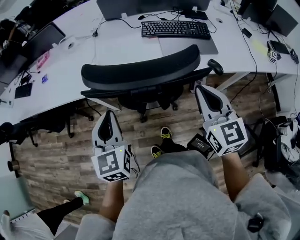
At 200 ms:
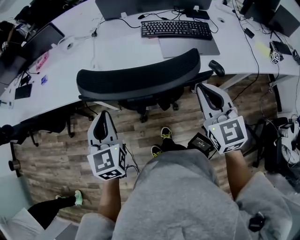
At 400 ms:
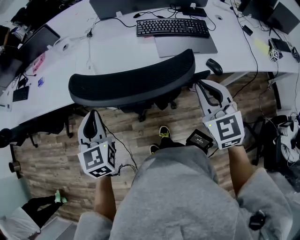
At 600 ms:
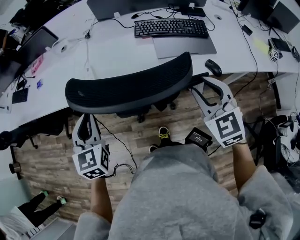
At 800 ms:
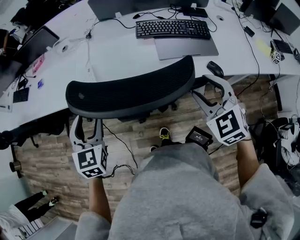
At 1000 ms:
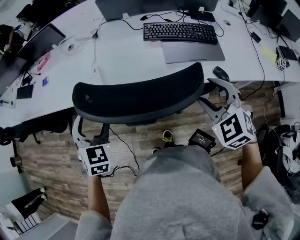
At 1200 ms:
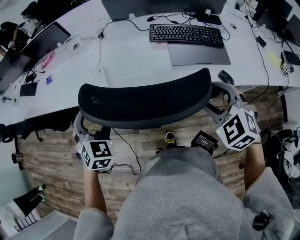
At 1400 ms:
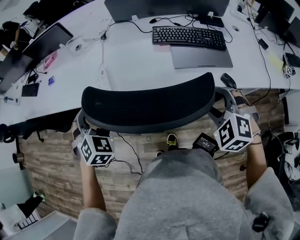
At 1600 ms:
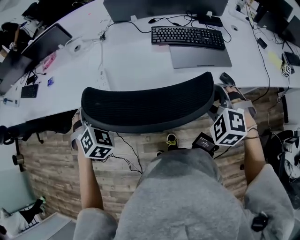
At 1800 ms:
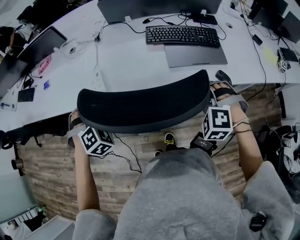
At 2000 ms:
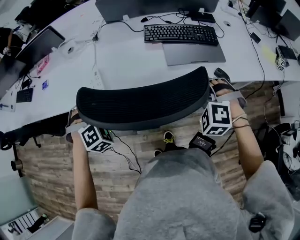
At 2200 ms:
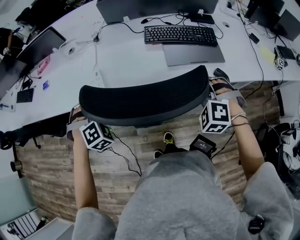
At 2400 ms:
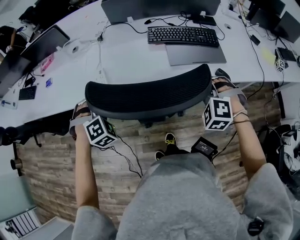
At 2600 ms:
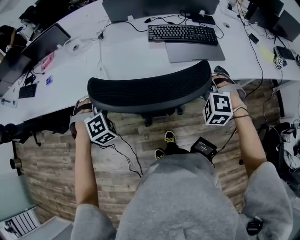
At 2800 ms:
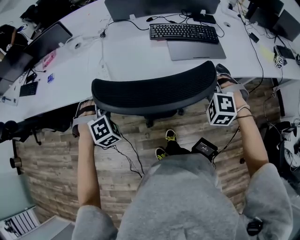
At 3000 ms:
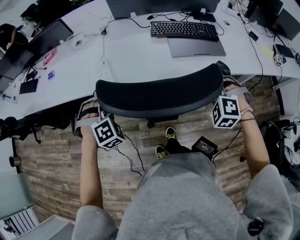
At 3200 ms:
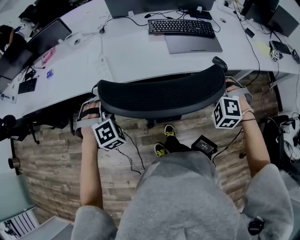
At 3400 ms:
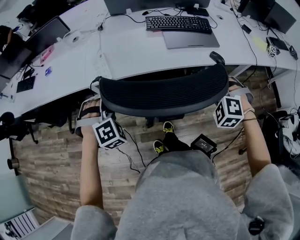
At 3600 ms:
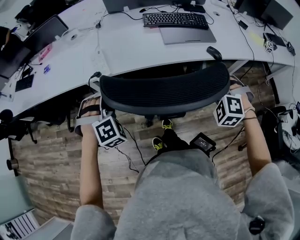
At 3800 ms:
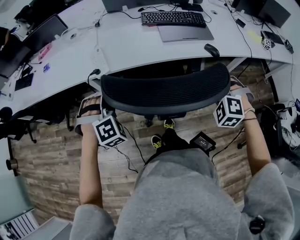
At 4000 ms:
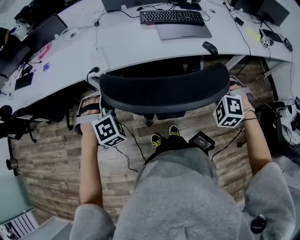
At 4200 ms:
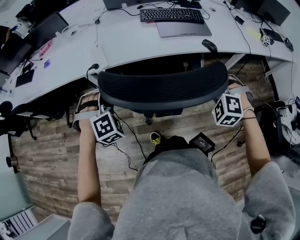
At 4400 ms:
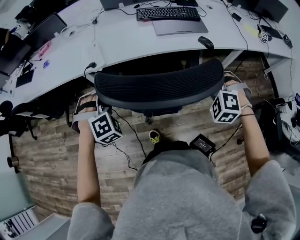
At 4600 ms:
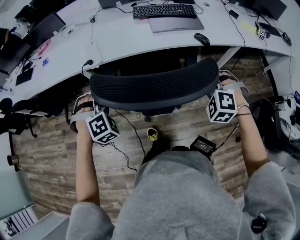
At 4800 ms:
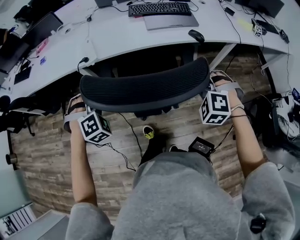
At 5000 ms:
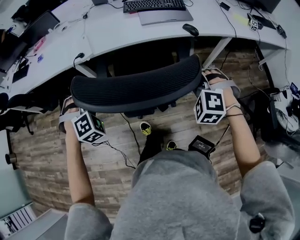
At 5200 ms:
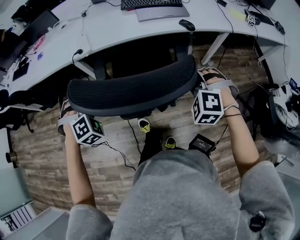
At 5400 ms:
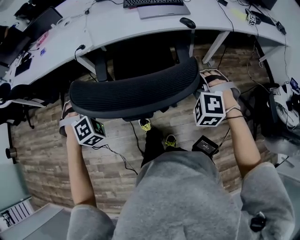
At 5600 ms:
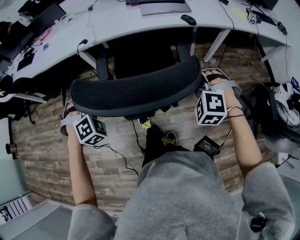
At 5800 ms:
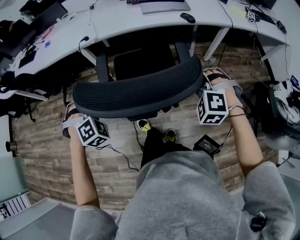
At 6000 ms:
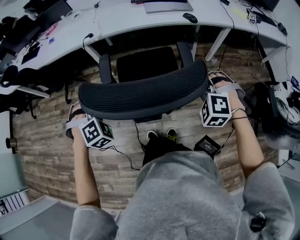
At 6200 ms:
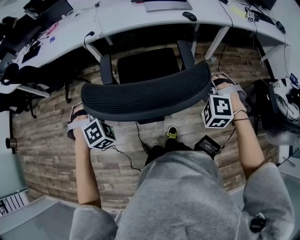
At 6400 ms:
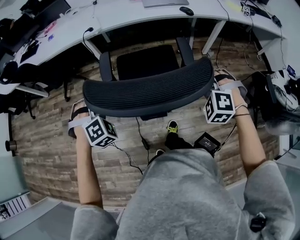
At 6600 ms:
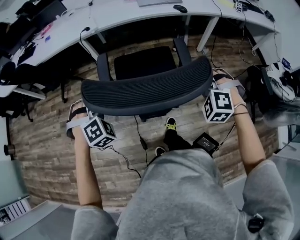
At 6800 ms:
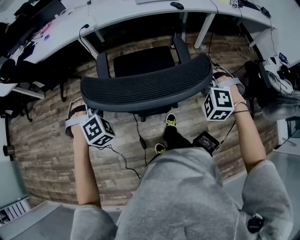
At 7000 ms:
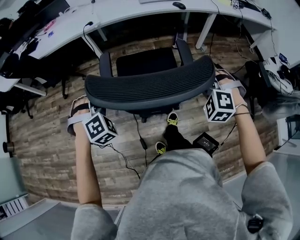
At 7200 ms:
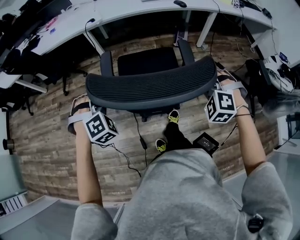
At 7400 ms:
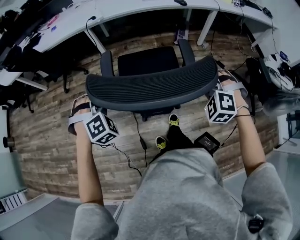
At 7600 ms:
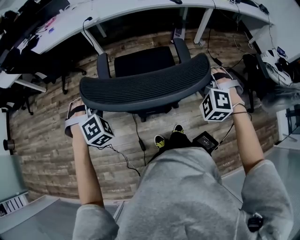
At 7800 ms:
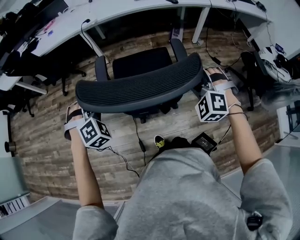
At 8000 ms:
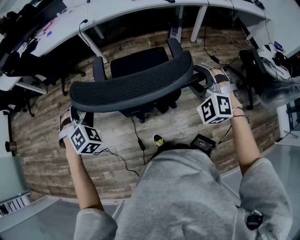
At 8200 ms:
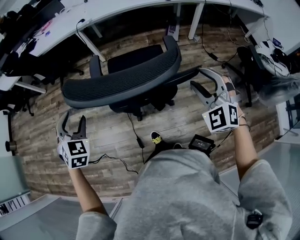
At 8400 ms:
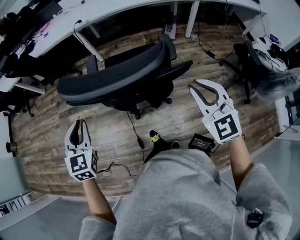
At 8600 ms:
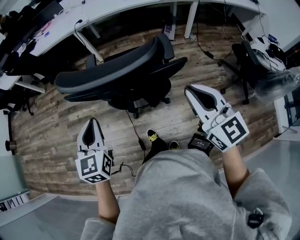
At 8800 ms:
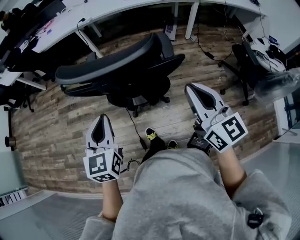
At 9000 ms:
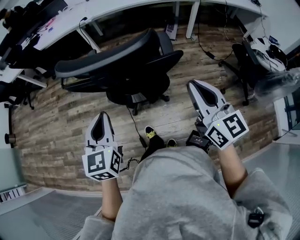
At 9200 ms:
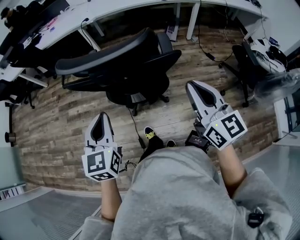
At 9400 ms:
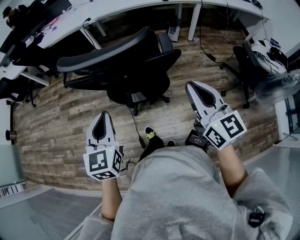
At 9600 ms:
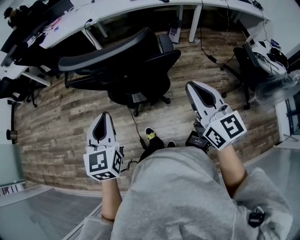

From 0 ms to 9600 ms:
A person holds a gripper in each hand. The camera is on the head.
From 0 ms to 1600 ms: The right gripper travels downward and forward by roughly 15 cm, rotates around the line of its fingers by roughly 60 degrees, counterclockwise from behind, and opens its fingers. The left gripper shifts about 15 cm forward and downward, rotates around the line of its fingers by roughly 50 degrees, clockwise from behind, and opens its fingers.
From 1600 ms to 3200 ms: The two grippers go roughly 10 cm backward. The right gripper closes up. The left gripper rotates approximately 30 degrees, and closes its fingers.
From 3200 ms to 4800 ms: The two grippers go roughly 15 cm backward.
From 4800 ms to 6400 ms: The grippers both shift backward by approximately 25 cm.
From 6400 ms to 8000 ms: Both grippers travel together backward, approximately 20 cm. The right gripper changes its angle by about 20 degrees, and opens up.
From 8000 ms to 9600 ms: The right gripper travels backward and upward by about 20 cm, rolls clockwise, seen from behind, by some 70 degrees, and closes up, while the left gripper goes some 25 cm backward and to the right, rotates around the line of its fingers by about 60 degrees, counterclockwise from behind, and closes its fingers.

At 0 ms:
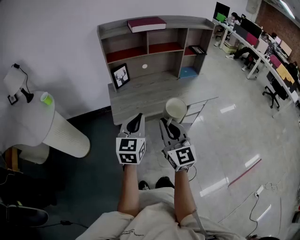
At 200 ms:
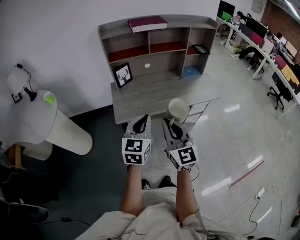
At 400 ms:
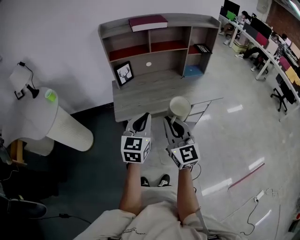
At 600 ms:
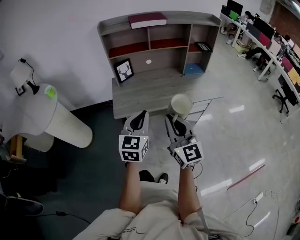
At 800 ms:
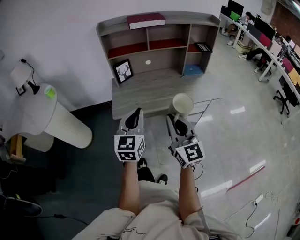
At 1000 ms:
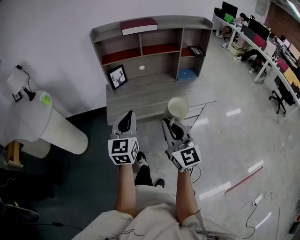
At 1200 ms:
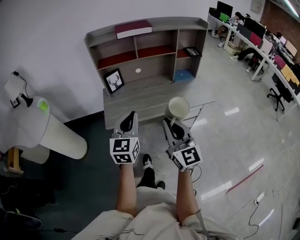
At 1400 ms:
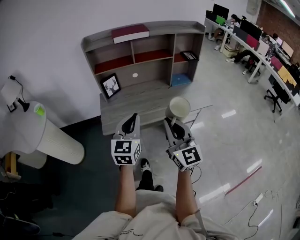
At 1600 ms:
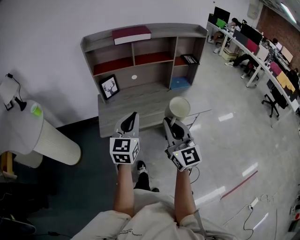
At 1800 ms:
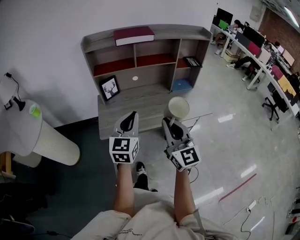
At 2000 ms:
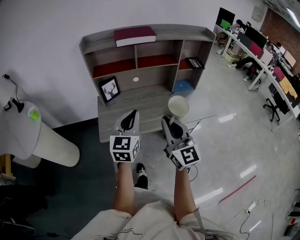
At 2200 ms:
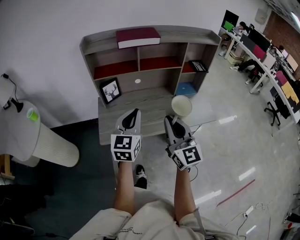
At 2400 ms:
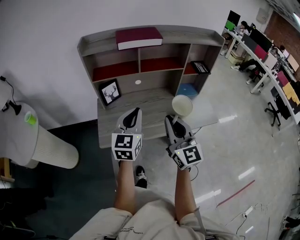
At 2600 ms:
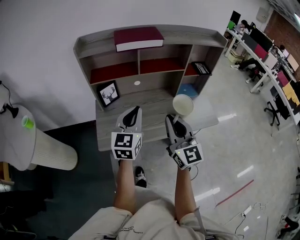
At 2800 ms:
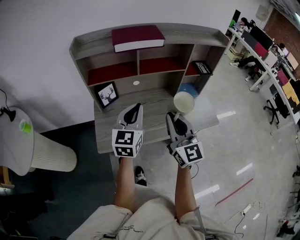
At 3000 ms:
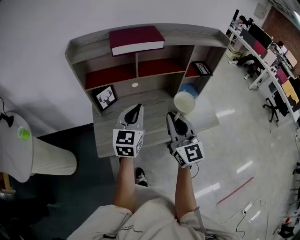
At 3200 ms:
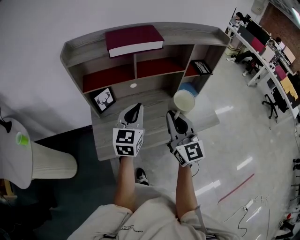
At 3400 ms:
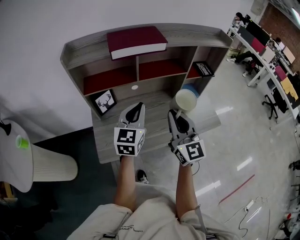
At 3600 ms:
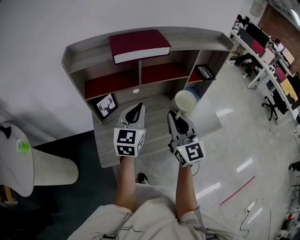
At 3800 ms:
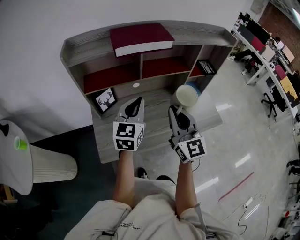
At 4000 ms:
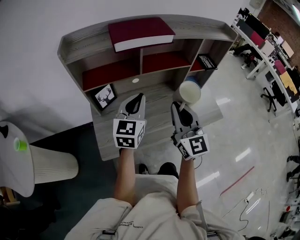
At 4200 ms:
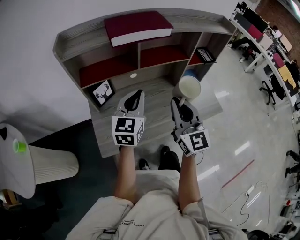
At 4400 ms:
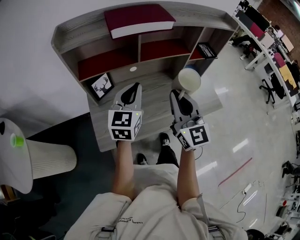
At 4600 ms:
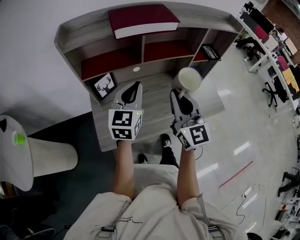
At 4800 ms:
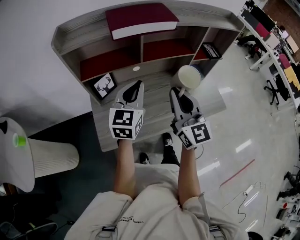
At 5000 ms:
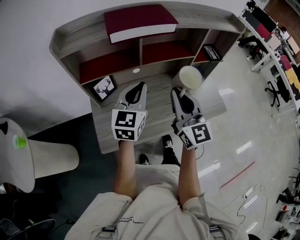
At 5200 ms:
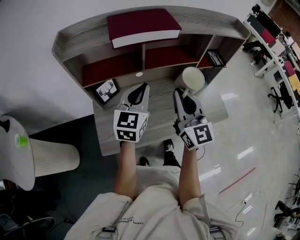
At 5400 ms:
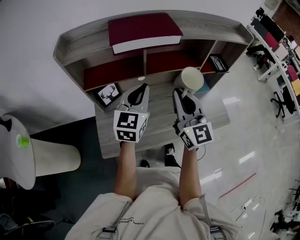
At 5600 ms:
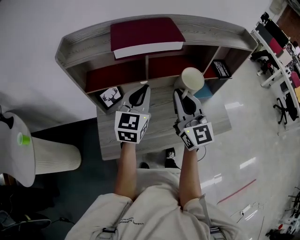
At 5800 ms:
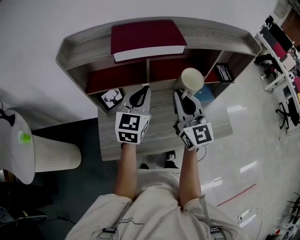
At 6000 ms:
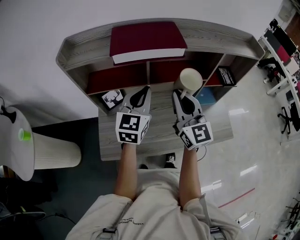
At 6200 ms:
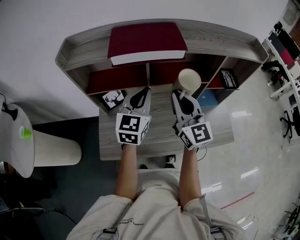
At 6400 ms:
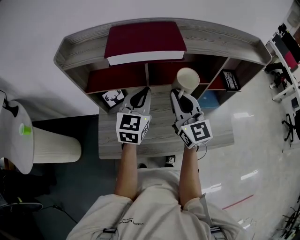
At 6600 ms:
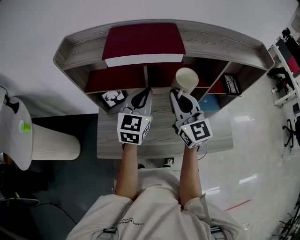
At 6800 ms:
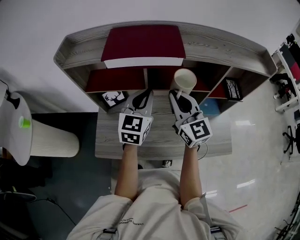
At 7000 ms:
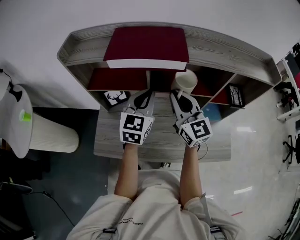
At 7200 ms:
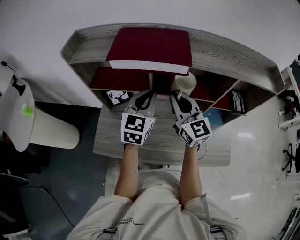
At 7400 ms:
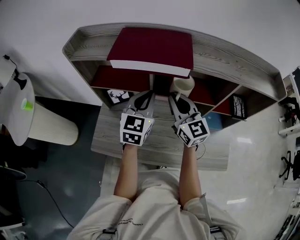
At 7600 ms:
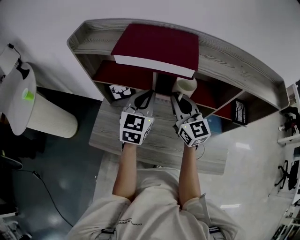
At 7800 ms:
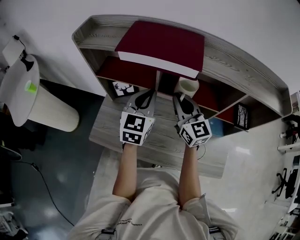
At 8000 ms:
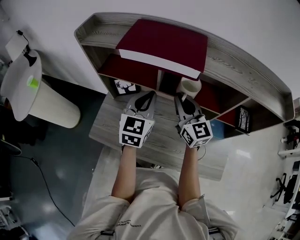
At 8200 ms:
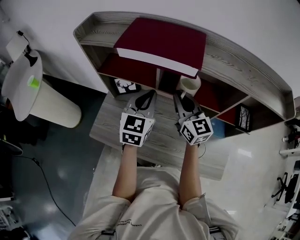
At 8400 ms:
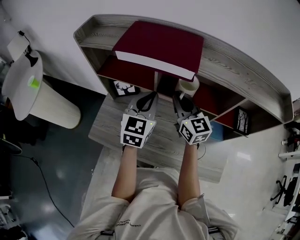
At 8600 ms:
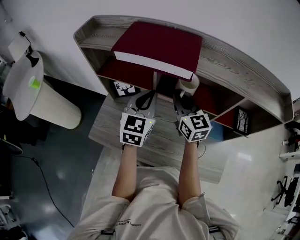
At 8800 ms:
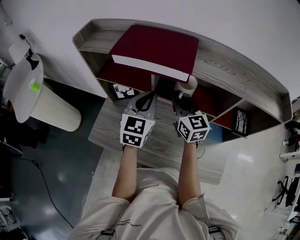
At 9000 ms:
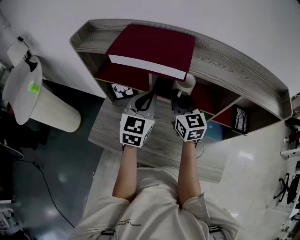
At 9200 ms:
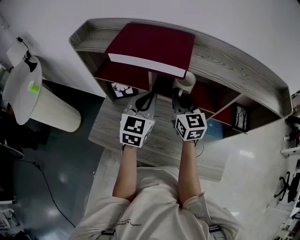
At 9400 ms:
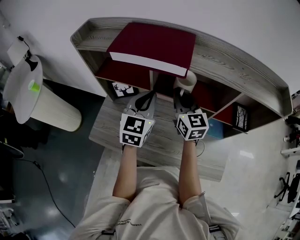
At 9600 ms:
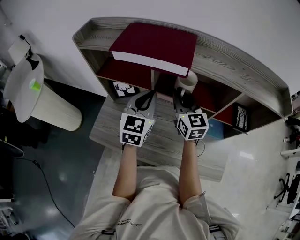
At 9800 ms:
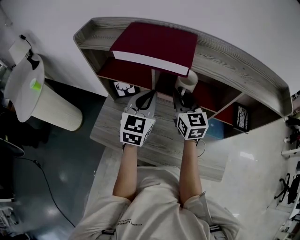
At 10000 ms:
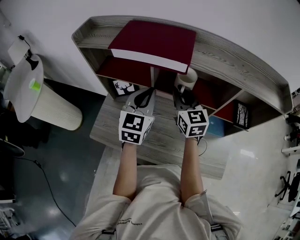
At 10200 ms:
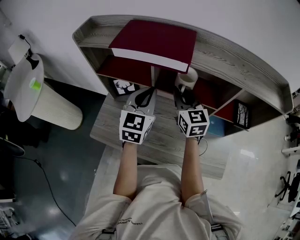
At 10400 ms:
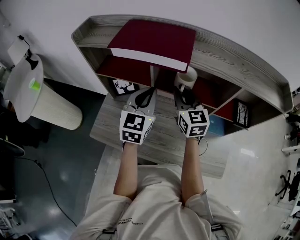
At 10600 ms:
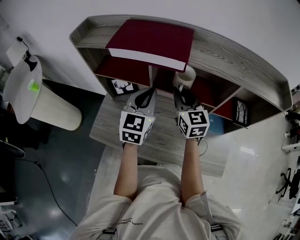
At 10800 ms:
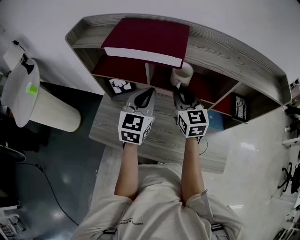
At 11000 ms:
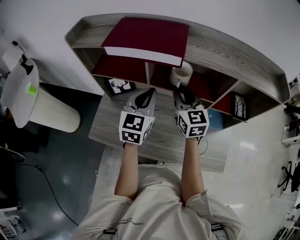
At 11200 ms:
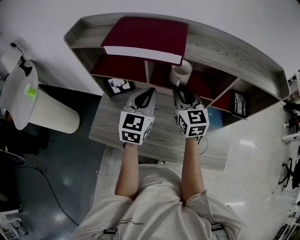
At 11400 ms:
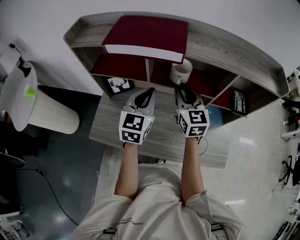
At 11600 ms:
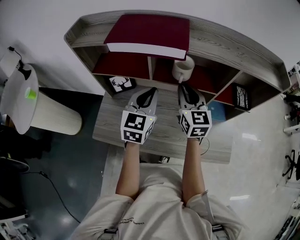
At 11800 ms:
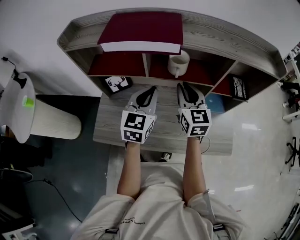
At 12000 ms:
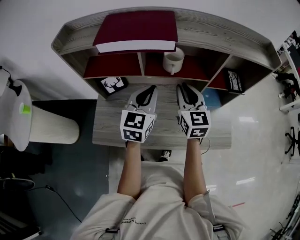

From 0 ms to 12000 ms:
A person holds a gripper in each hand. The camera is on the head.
From 0 ms to 1600 ms: Both grippers travel together to the right and forward, some 15 cm.
From 1600 ms to 3000 ms: The two grippers go some 25 cm forward.
From 3000 ms to 4400 ms: The grippers both shift forward by some 5 cm.
From 4400 ms to 6000 ms: Both grippers move forward, about 10 cm.
From 6000 ms to 7600 ms: The left gripper changes place by roughly 5 cm. Meanwhile the right gripper heads forward and downward, covering approximately 10 cm, and swivels approximately 20 degrees.
From 7600 ms to 10400 ms: There are only small adjustments of the grippers.
From 10400 ms to 12000 ms: The left gripper changes place by approximately 5 cm. The right gripper moves backward, about 5 cm.

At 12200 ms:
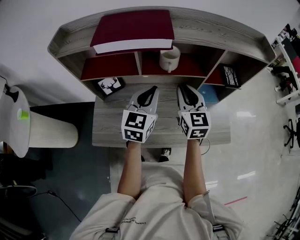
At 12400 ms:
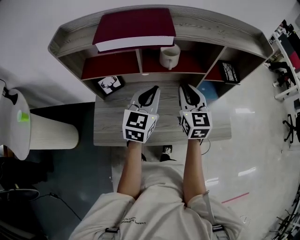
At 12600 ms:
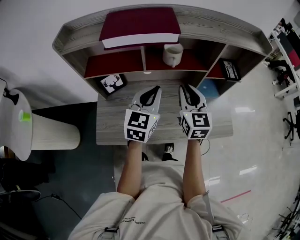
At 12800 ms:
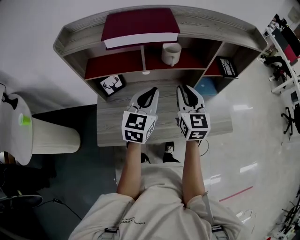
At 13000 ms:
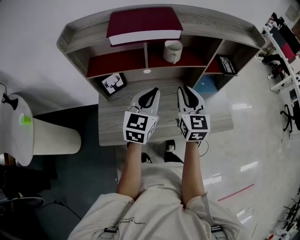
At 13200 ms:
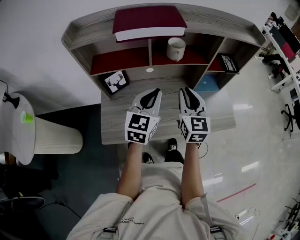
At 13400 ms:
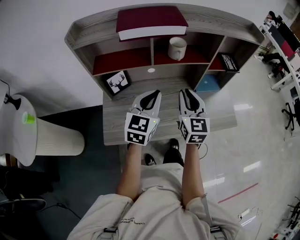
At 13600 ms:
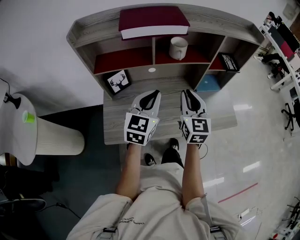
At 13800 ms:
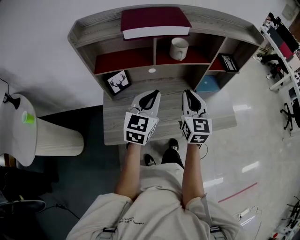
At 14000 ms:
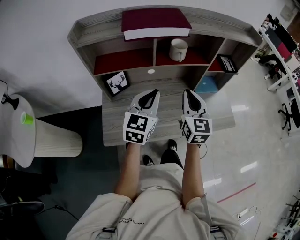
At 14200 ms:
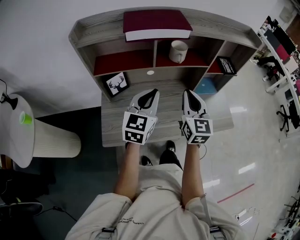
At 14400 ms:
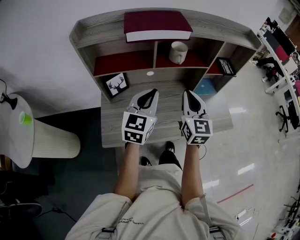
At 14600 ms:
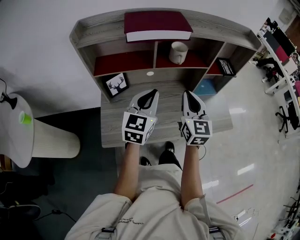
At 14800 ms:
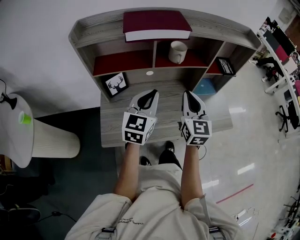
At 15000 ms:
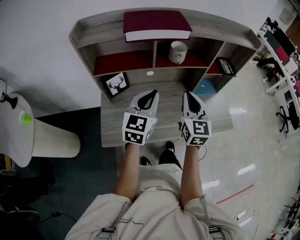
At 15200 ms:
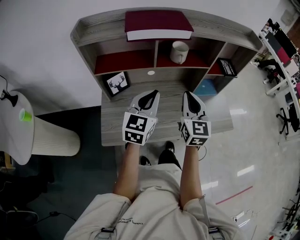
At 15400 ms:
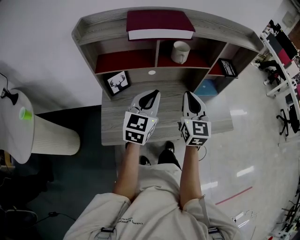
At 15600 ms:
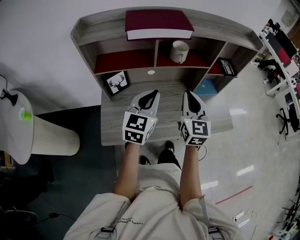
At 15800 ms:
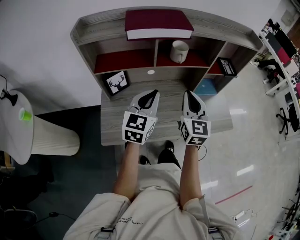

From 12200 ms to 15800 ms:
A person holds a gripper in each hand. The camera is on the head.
From 12200 ms to 14000 ms: The left gripper heads backward and to the left, covering approximately 10 cm, while the right gripper heads backward, covering roughly 10 cm.
From 14000 ms to 15800 ms: Both grippers stay put.
